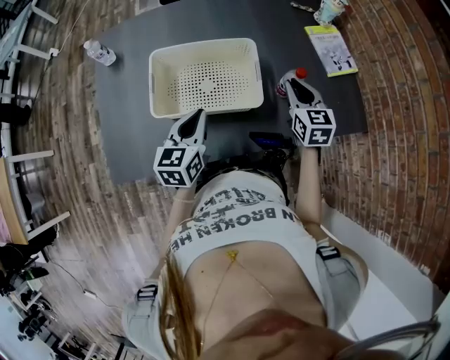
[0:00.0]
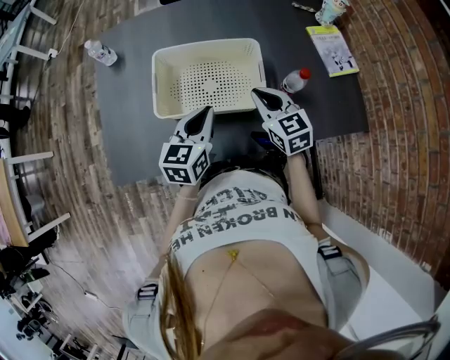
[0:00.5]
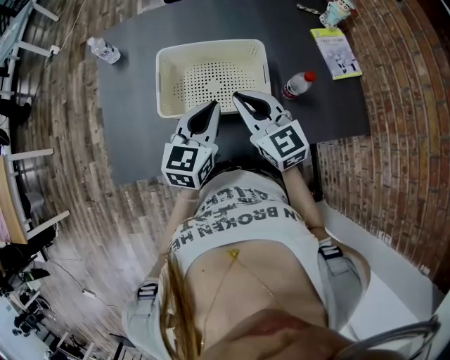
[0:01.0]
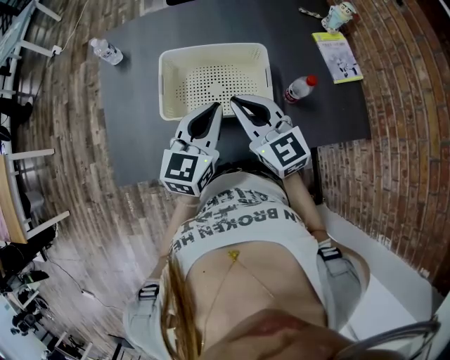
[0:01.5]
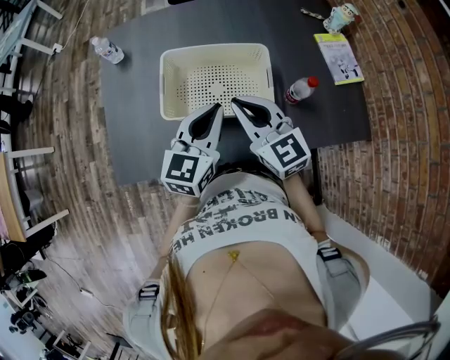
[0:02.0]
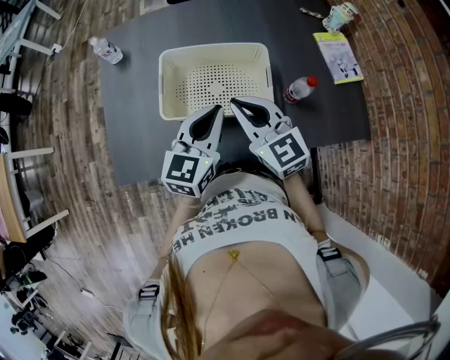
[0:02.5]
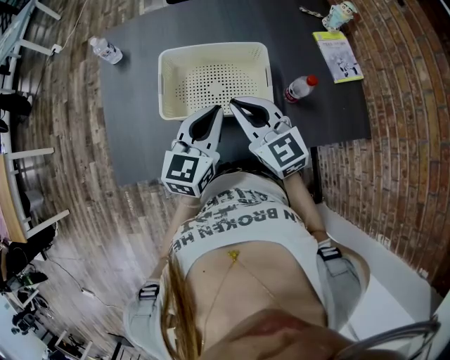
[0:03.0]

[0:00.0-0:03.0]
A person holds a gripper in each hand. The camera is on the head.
0:00.0 to 0:01.5: The right gripper travels to the left and upward by some 25 cm, and turns by some 30 degrees; the left gripper moves upward, roughly 10 cm.
0:01.5 to 0:03.0: Neither gripper changes place.

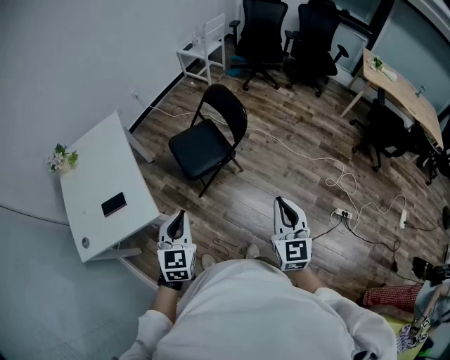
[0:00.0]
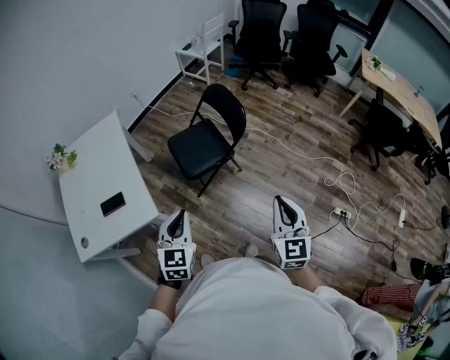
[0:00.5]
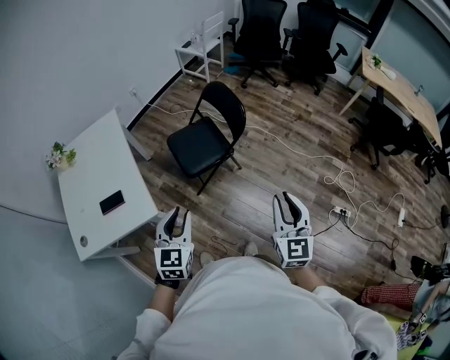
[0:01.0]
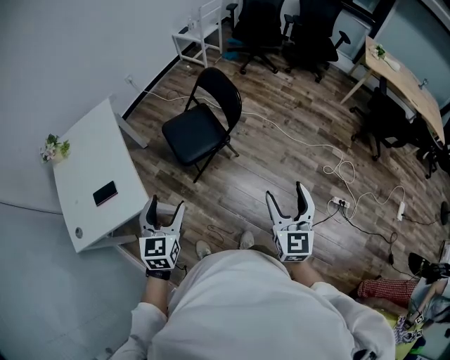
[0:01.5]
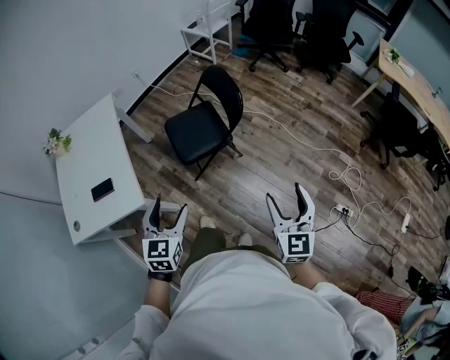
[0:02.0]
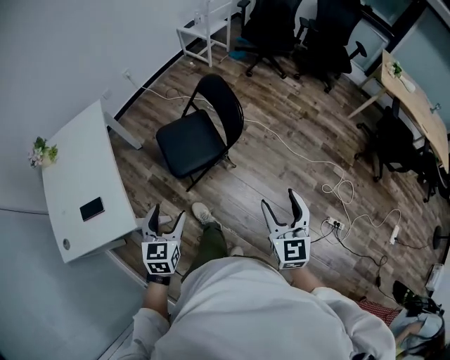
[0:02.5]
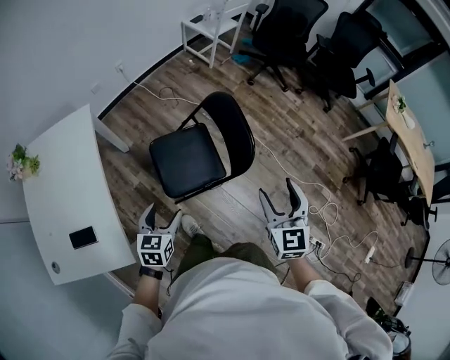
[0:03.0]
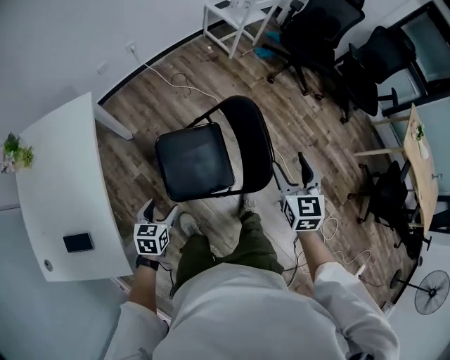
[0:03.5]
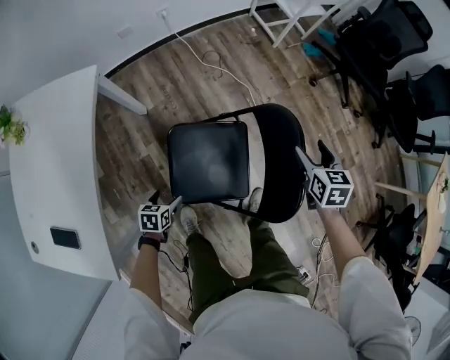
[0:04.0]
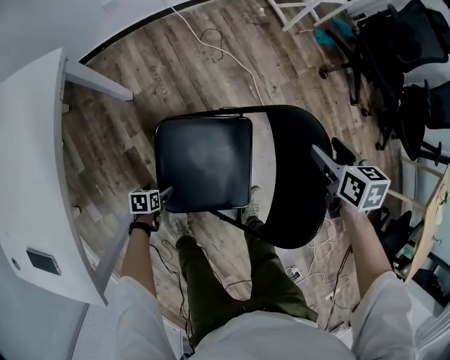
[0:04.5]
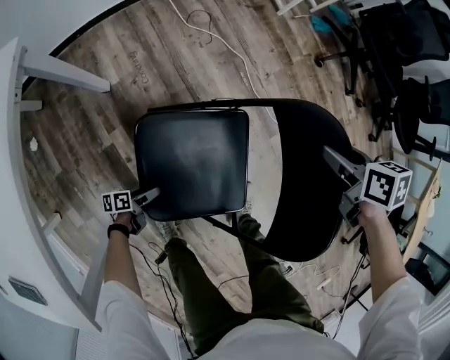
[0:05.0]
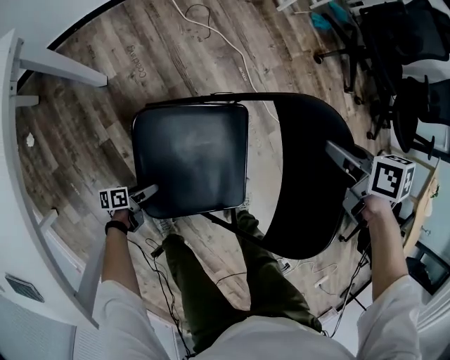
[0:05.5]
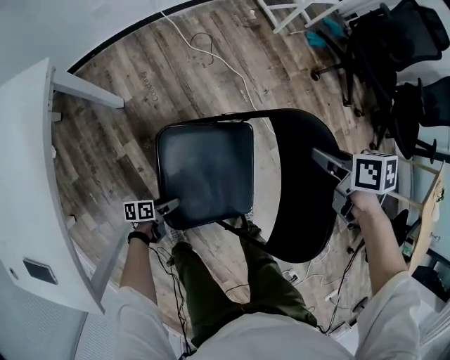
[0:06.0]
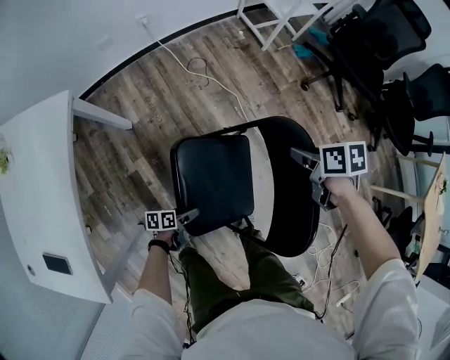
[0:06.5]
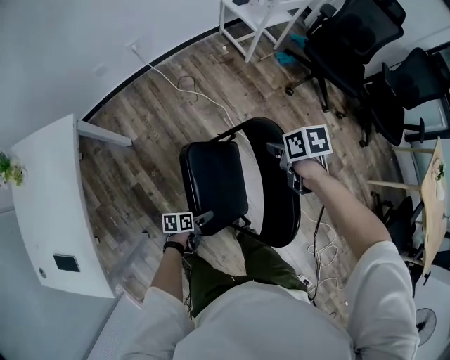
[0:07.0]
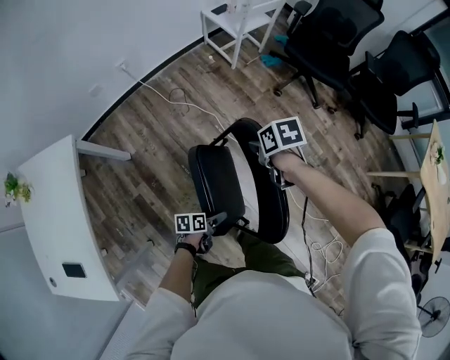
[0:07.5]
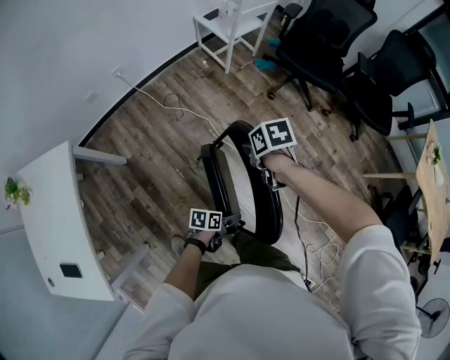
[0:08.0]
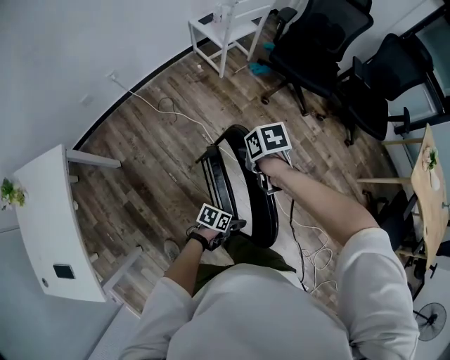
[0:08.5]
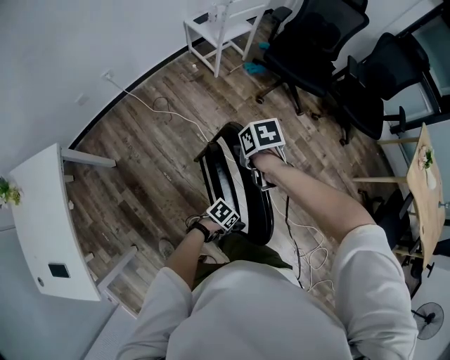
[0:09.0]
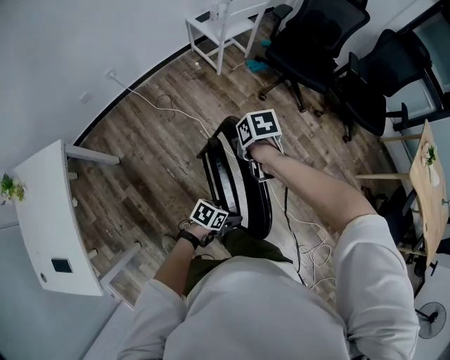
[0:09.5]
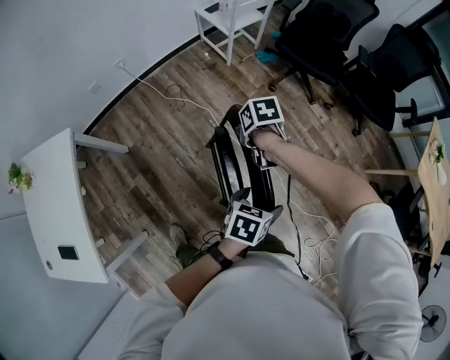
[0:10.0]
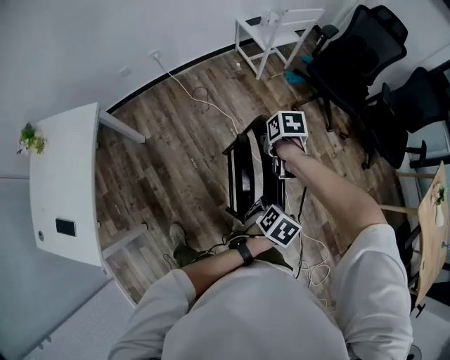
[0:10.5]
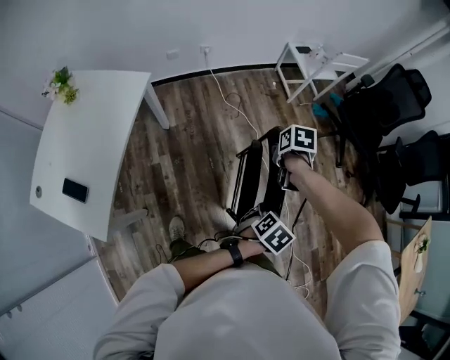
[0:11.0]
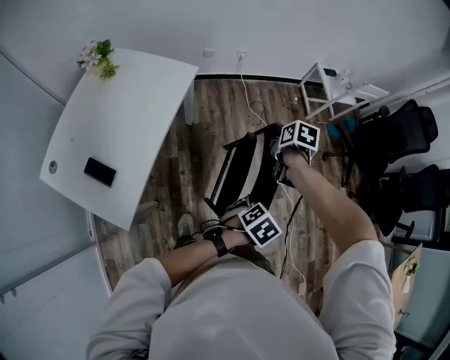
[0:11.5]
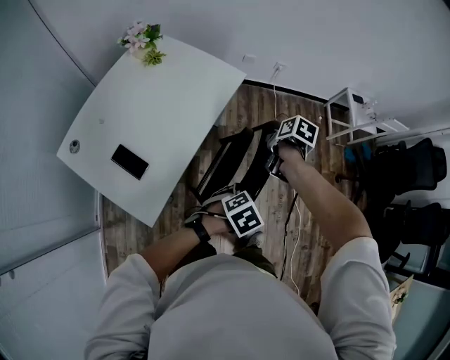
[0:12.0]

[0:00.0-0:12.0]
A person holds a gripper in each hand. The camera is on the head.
0:00.0 to 0:02.0: The left gripper goes roughly 5 cm to the right, and opens up; the right gripper goes roughly 10 cm to the right, and opens its fingers.
0:02.0 to 0:04.0: The pair of grippers is taken forward, approximately 60 cm. The right gripper tips its fingers downward by some 40 degrees. Meanwhile the left gripper moves downward, about 40 cm, and angles its fingers downward, by about 40 degrees.
0:04.0 to 0:06.0: The right gripper goes roughly 10 cm downward and forward, swivels some 40 degrees, and closes up. Meanwhile the left gripper heads downward, covering some 20 cm, and changes its angle by approximately 40 degrees.
0:06.0 to 0:08.0: The right gripper is displaced upward by approximately 10 cm; the left gripper changes place by approximately 50 cm, and turns by some 30 degrees.
0:08.0 to 0:10.0: The left gripper travels upward by about 20 cm, and swivels approximately 30 degrees.
0:10.0 to 0:12.0: The two grippers travel together, to the left, approximately 60 cm.

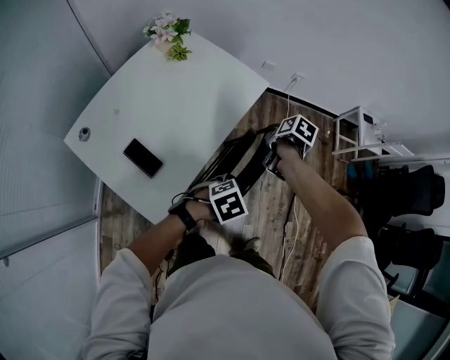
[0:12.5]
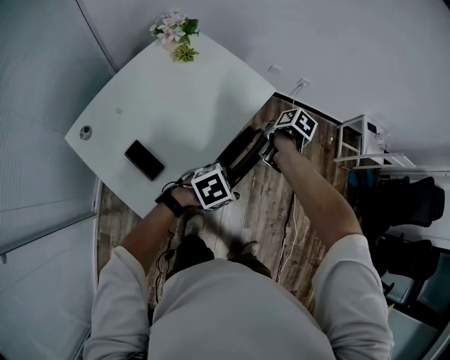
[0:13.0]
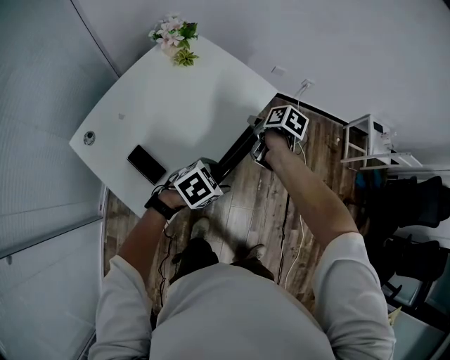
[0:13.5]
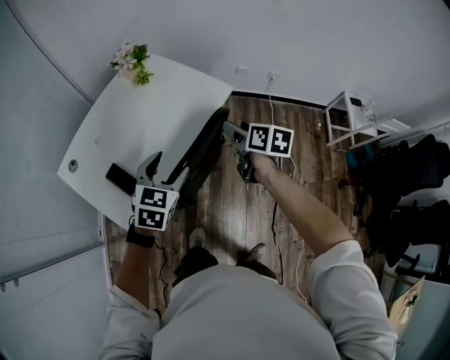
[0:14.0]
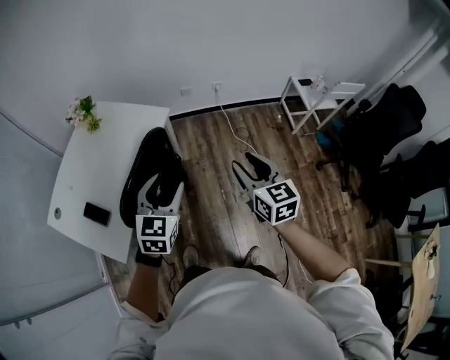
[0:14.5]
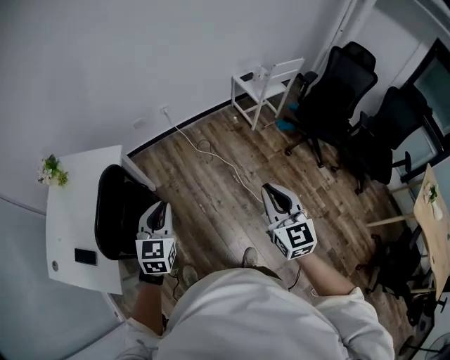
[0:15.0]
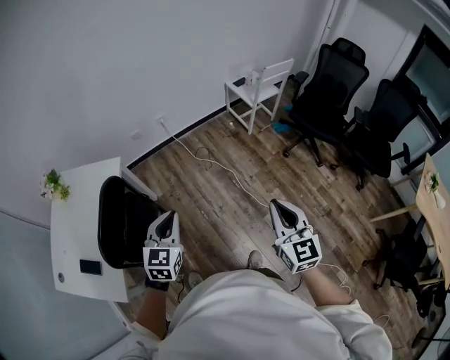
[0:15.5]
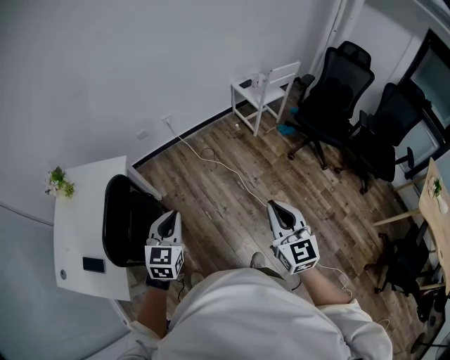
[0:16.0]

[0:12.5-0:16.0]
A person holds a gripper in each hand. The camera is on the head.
0:12.5 to 0:14.5: The left gripper moves upward, some 15 cm, and tips its fingers upward by approximately 40 degrees, while the right gripper changes place by approximately 35 cm, and tilts its fingers about 50 degrees upward.
0:14.5 to 0:16.0: The right gripper is displaced to the right and backward by some 30 cm, turns by roughly 30 degrees, and closes. The left gripper shifts about 20 cm to the right, and closes up.

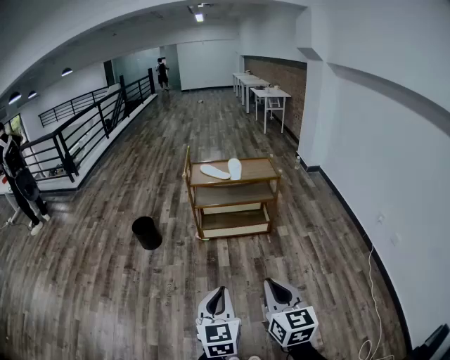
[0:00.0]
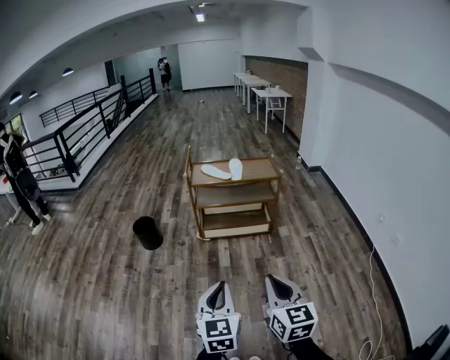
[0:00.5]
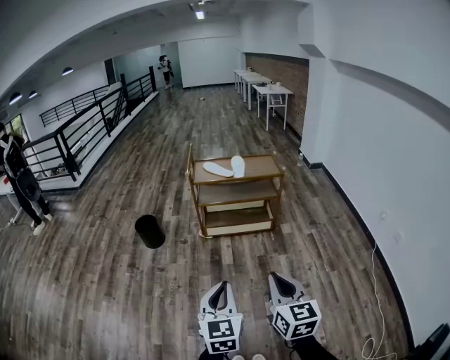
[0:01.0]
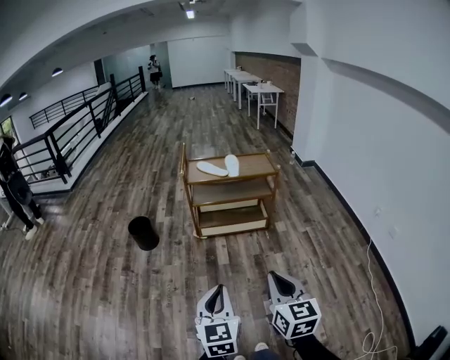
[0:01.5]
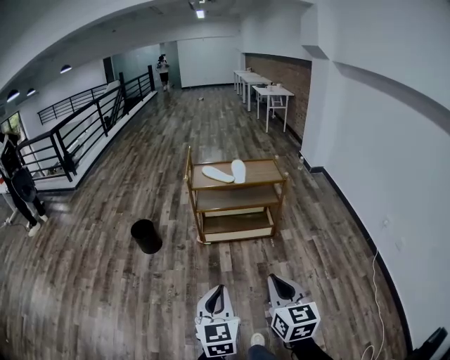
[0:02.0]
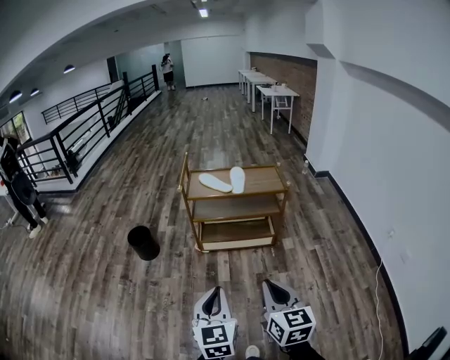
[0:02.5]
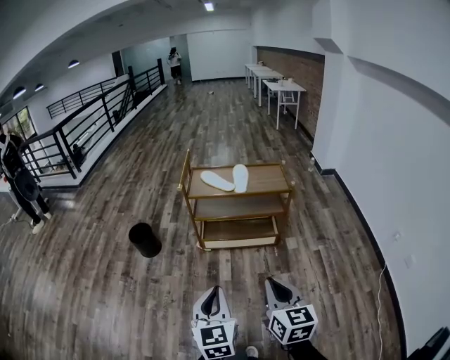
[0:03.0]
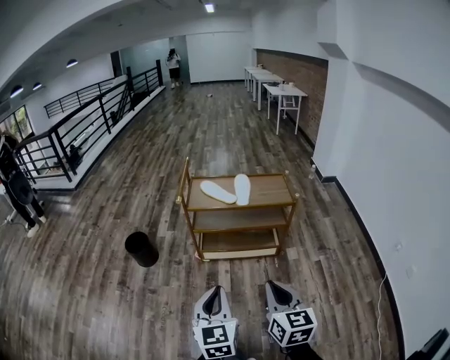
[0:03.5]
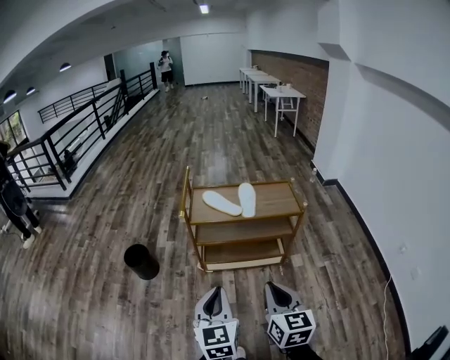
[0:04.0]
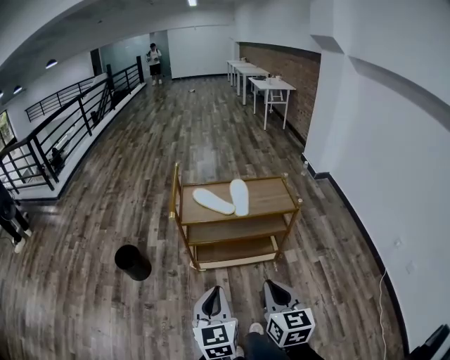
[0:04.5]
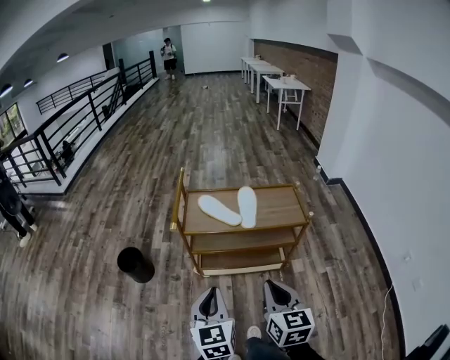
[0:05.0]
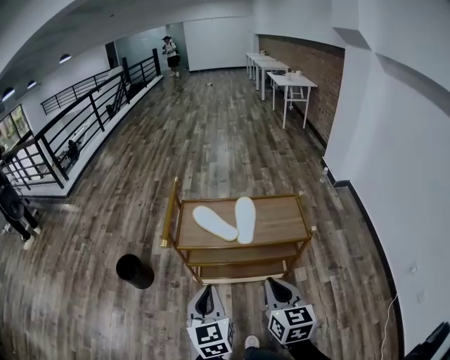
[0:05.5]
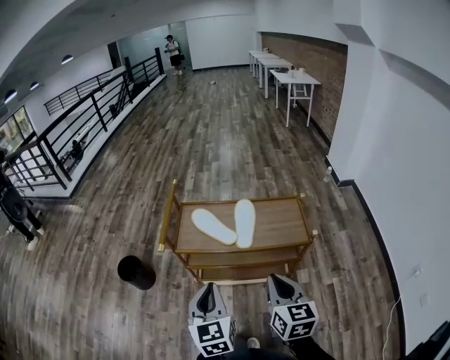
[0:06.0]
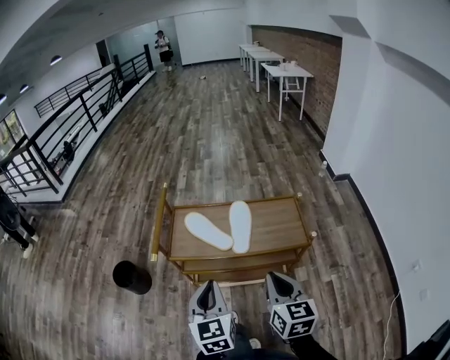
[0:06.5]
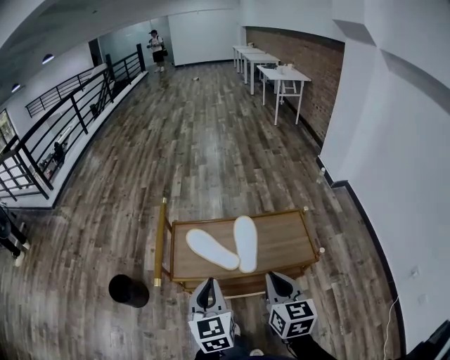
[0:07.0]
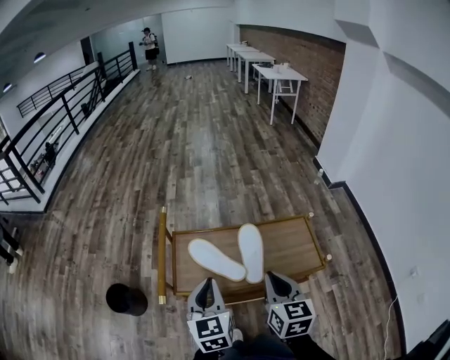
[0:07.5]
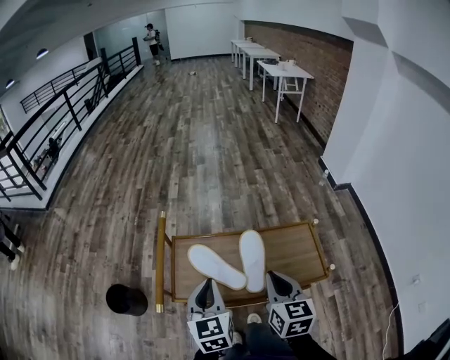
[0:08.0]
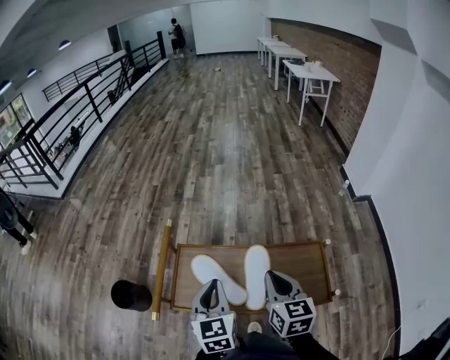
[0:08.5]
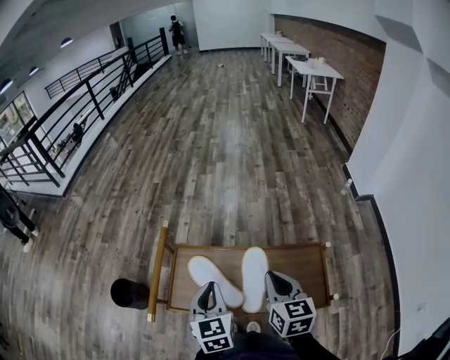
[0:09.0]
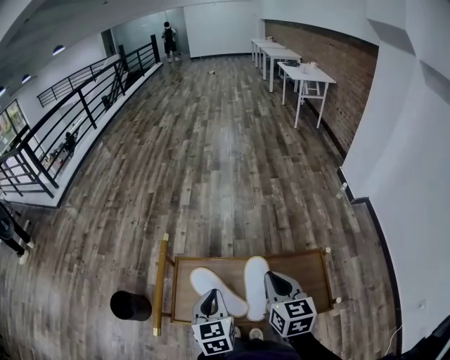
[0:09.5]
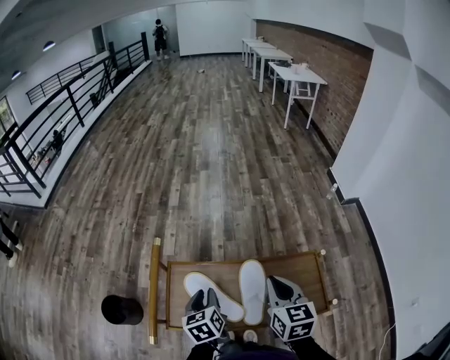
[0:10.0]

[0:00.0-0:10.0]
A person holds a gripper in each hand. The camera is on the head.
0:00.0 to 0:02.0: Both grippers travel together forward, approximately 10 cm.
0:02.0 to 0:04.0: Both grippers move forward, roughly 30 cm.
0:04.0 to 0:06.0: The left gripper heads forward, covering approximately 25 cm. Meanwhile the right gripper travels forward and to the right by some 25 cm.
0:06.0 to 0:08.0: Both grippers move forward, some 25 cm.
0:08.0 to 0:10.0: The left gripper travels downward and forward by approximately 15 cm, and turns by about 30 degrees. The right gripper heads forward, covering about 10 cm.
